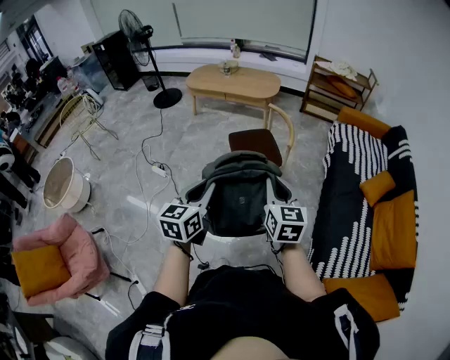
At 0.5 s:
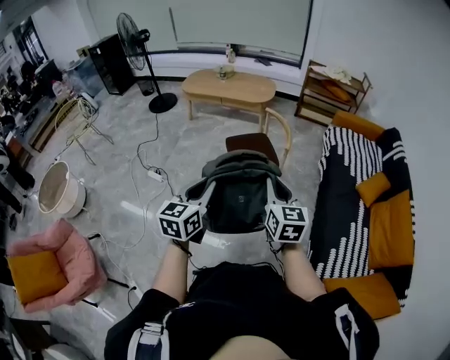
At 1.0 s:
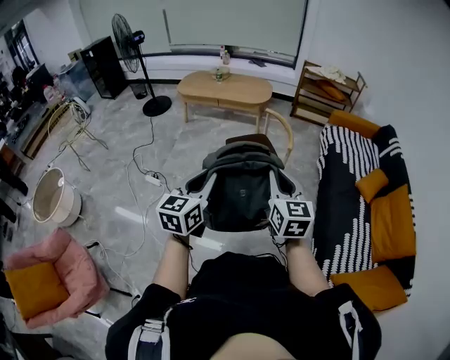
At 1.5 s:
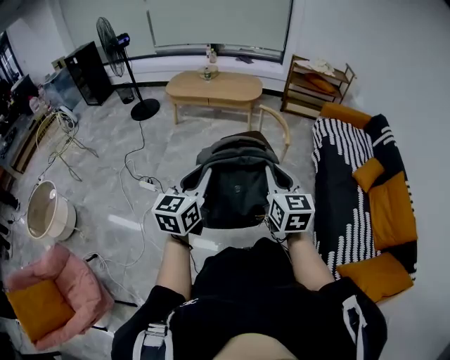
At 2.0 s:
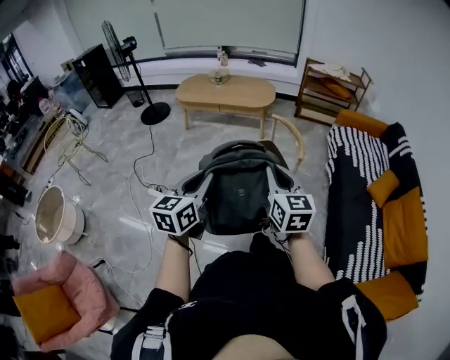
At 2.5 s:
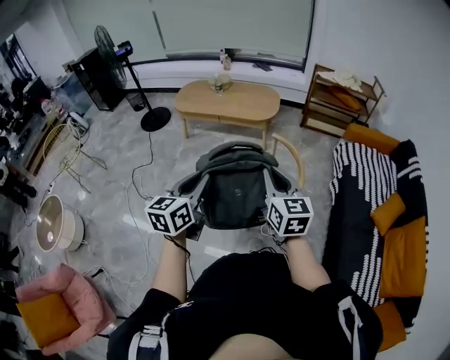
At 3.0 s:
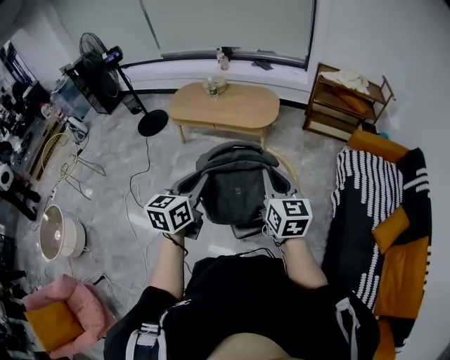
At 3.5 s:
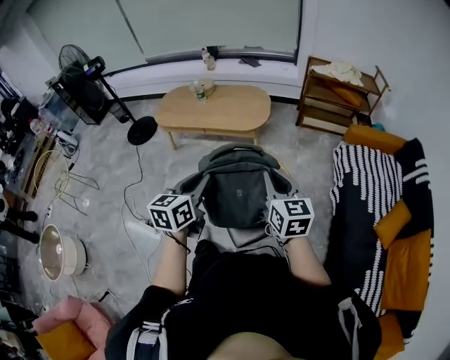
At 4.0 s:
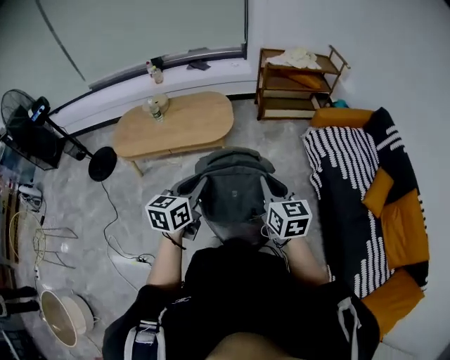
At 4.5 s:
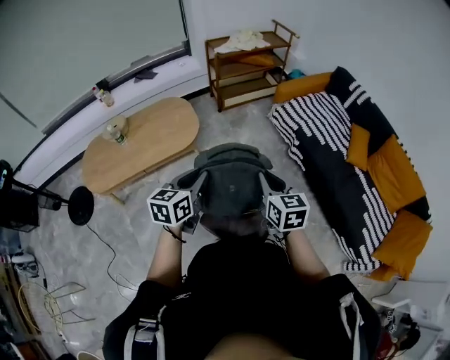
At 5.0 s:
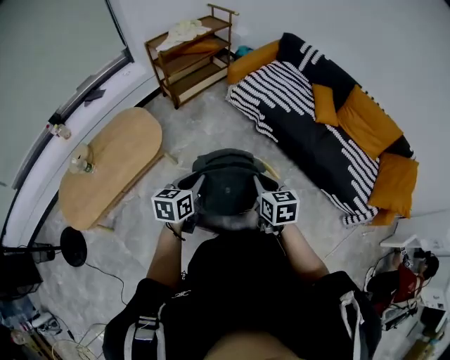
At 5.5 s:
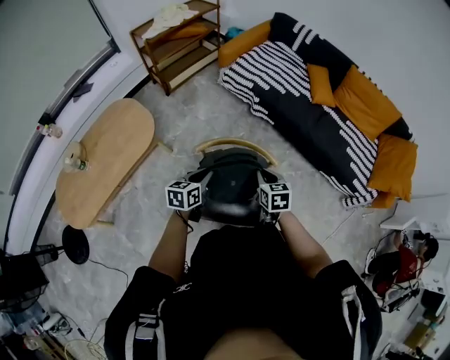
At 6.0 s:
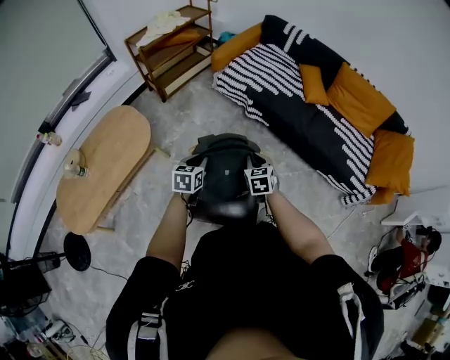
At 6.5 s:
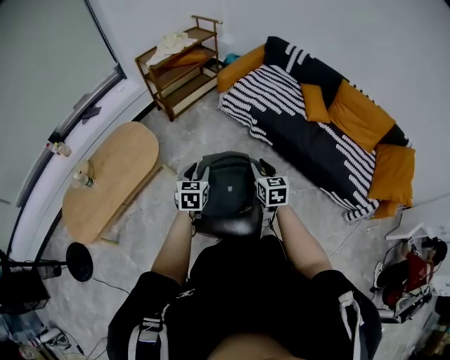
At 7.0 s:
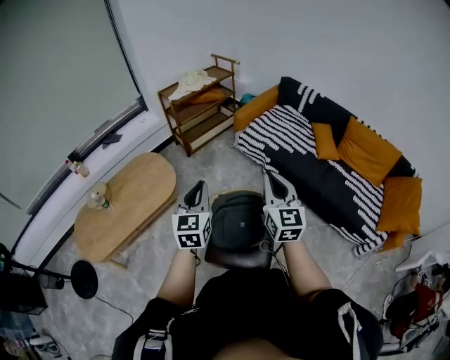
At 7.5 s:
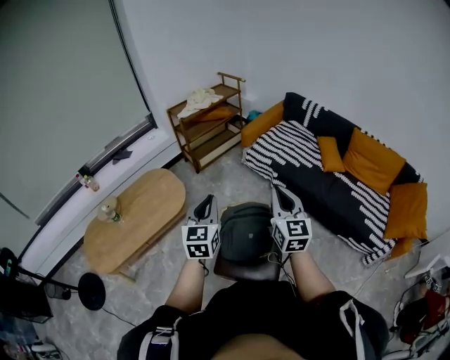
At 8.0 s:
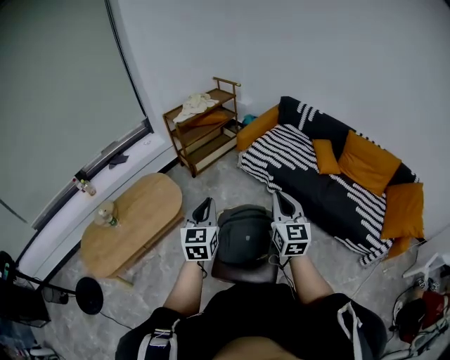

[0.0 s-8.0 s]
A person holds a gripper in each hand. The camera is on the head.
0.0 to 2.0 s: Both grippers travel together to the left and forward, some 20 cm.
2.0 to 4.0 s: Both grippers are carried forward, about 70 cm. The left gripper rotates some 20 degrees.
4.0 to 6.0 s: Both grippers travel together downward, about 25 cm. The right gripper rotates about 50 degrees. Meanwhile the left gripper swivels approximately 50 degrees.
6.0 to 8.0 s: The grippers both shift upward by some 30 cm. The right gripper points its fingers roughly 40 degrees further upward. The left gripper swivels approximately 40 degrees.

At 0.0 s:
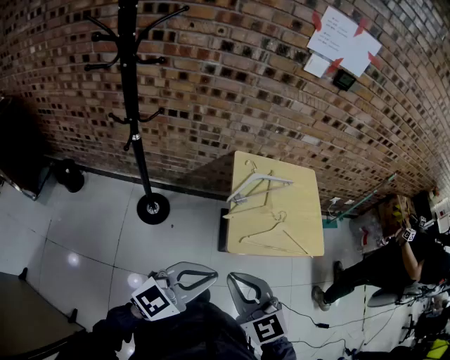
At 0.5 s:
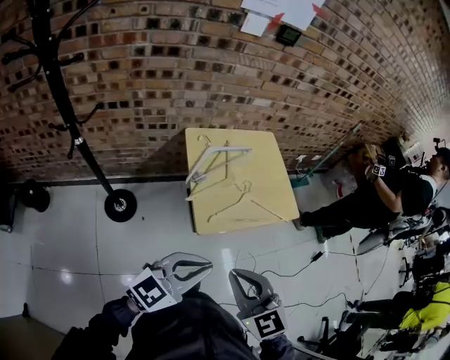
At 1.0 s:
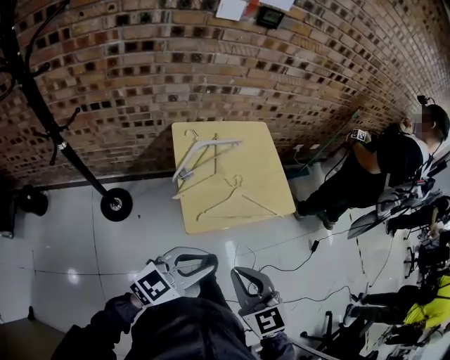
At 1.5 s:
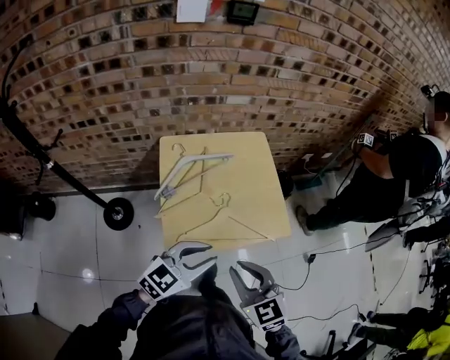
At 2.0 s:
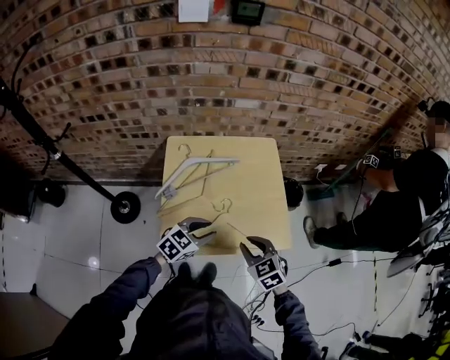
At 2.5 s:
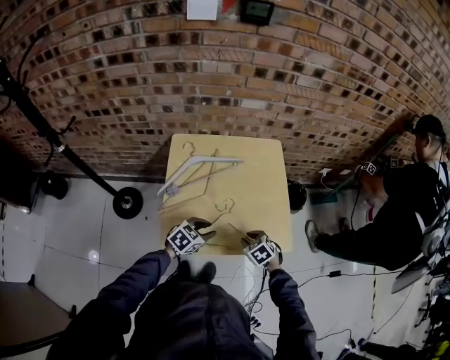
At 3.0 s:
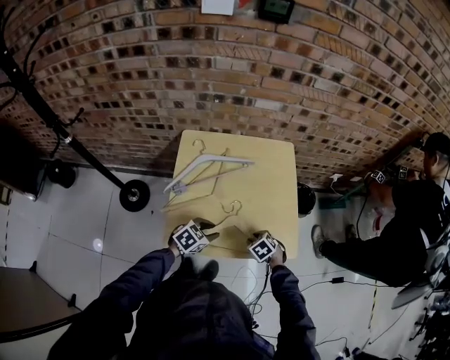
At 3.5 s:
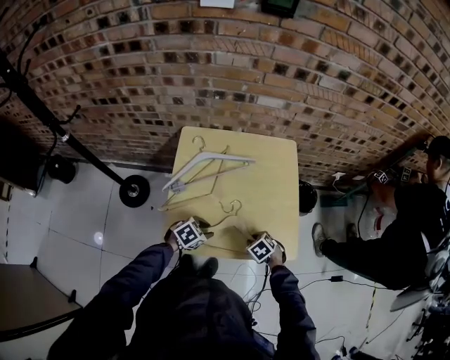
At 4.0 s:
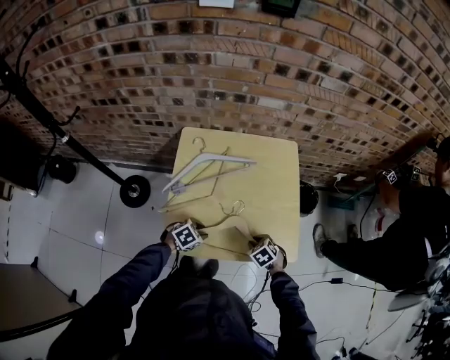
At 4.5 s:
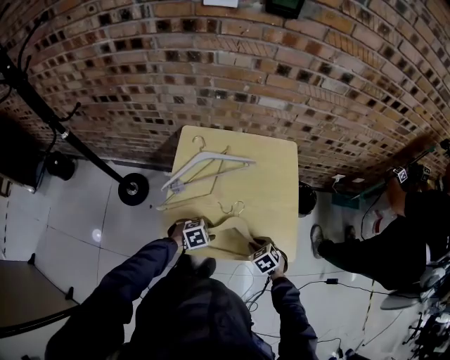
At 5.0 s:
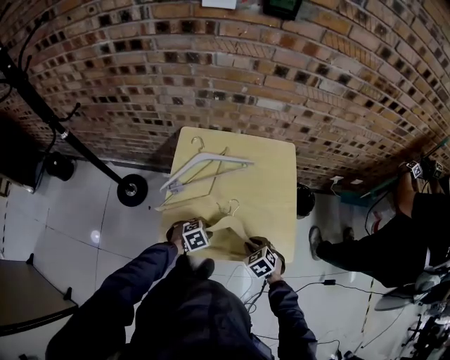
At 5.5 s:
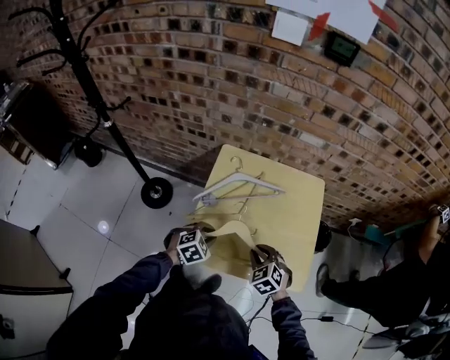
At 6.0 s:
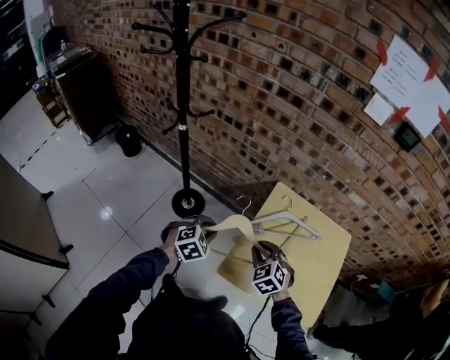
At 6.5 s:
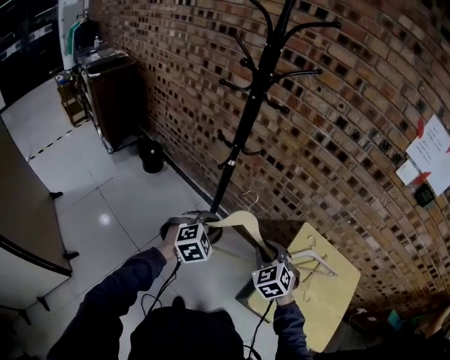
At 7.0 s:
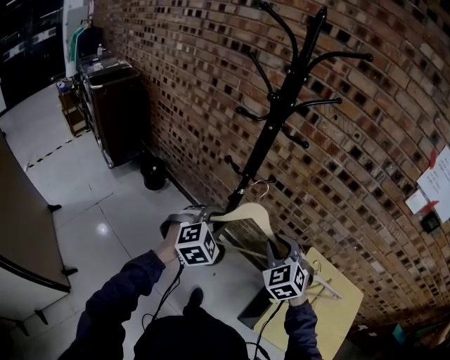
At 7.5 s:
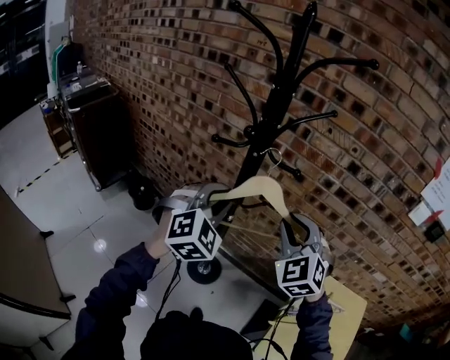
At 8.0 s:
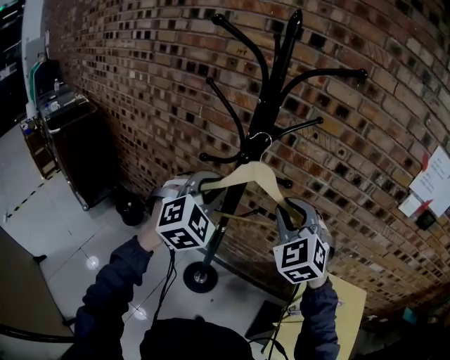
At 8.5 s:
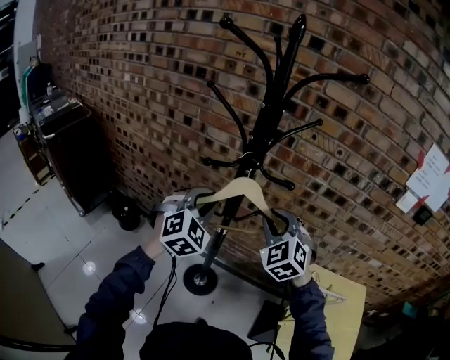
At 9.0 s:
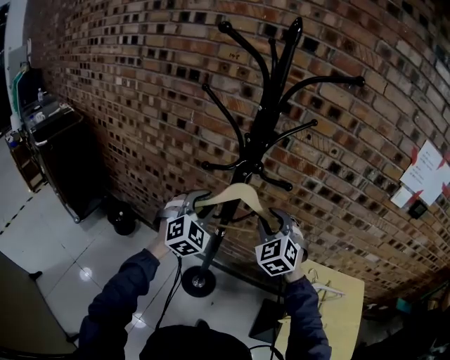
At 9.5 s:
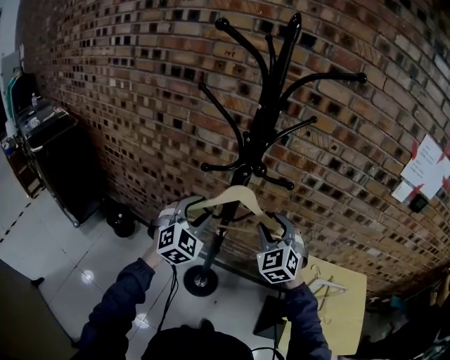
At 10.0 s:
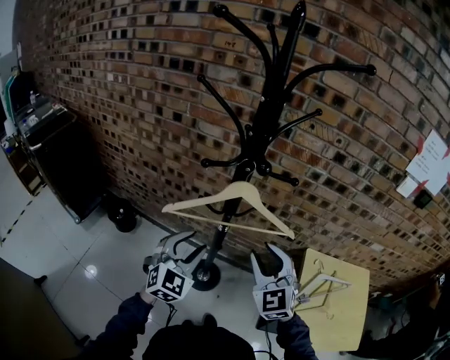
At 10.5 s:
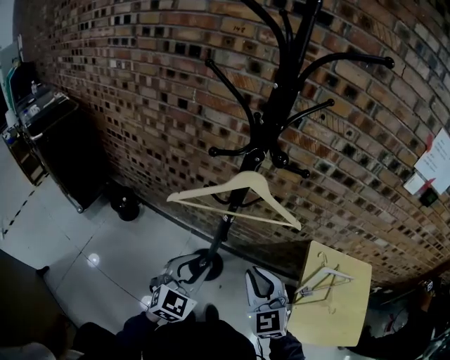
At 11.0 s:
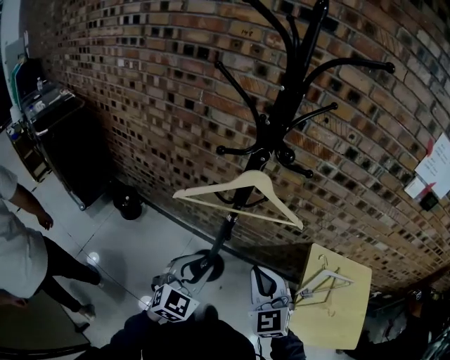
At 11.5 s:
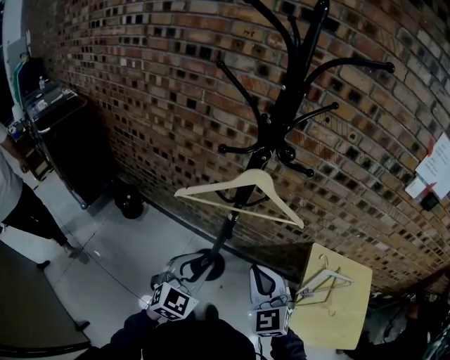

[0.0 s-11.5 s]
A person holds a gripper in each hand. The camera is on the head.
0.0 to 2.0 s: The pair of grippers is taken forward and to the right, about 40 cm. The grippers both shift downward by some 25 cm. The right gripper turns by some 30 degrees. The left gripper rotates about 30 degrees, and opens up.
2.0 to 4.0 s: Both grippers move downward, about 20 cm. The left gripper rotates some 30 degrees; the right gripper changes its angle by roughly 30 degrees.
4.0 to 6.0 s: The right gripper shifts by some 40 cm, and swivels about 40 degrees; the left gripper ends up approximately 35 cm from where it was, and turns by roughly 40 degrees.
6.0 to 7.5 s: Both grippers move upward, to the left and forward, approximately 50 cm. The right gripper changes its angle by about 30 degrees; the left gripper tilts its fingers about 30 degrees upward.
7.5 to 9.5 s: The right gripper heads downward and forward, covering about 10 cm, and opens its fingers. The left gripper shifts some 10 cm forward, to the left and downward, and opens its fingers.
9.5 to 11.5 s: The right gripper travels backward by roughly 20 cm, and closes up. Meanwhile the left gripper is displaced backward and downward by about 20 cm, swivels some 20 degrees, and closes.

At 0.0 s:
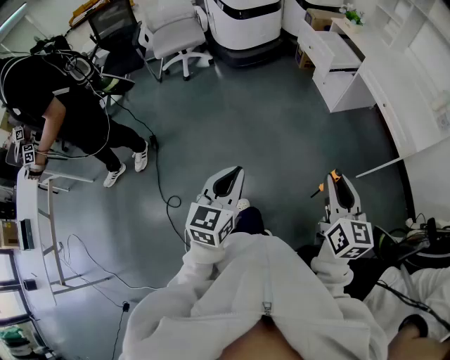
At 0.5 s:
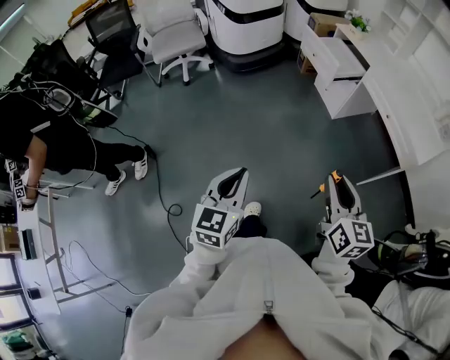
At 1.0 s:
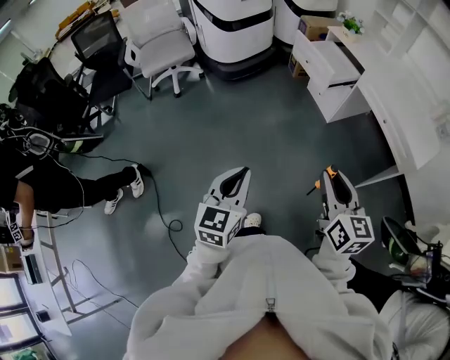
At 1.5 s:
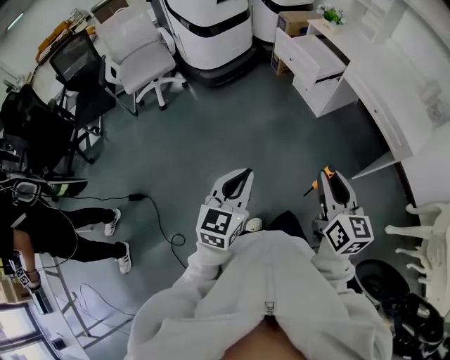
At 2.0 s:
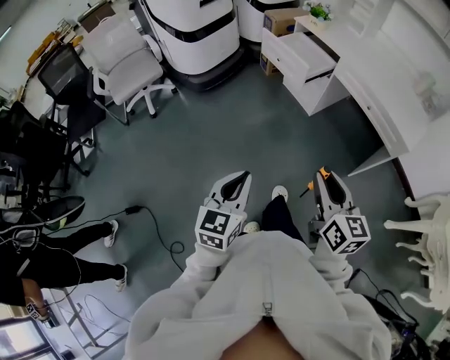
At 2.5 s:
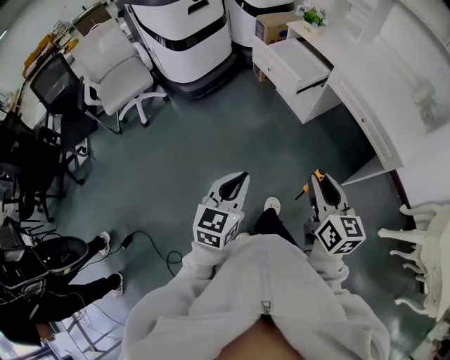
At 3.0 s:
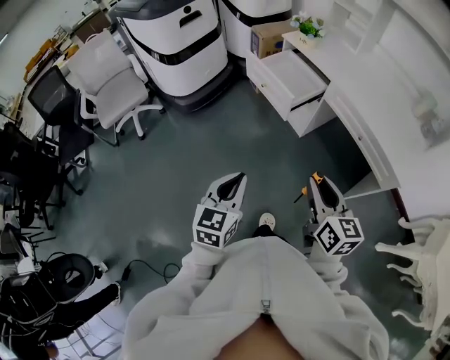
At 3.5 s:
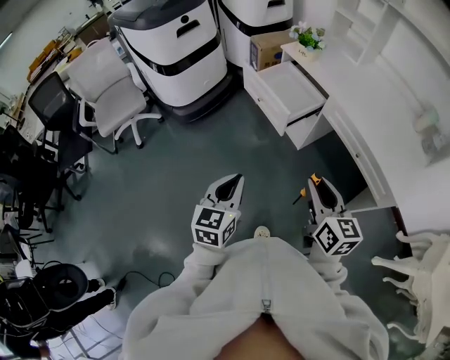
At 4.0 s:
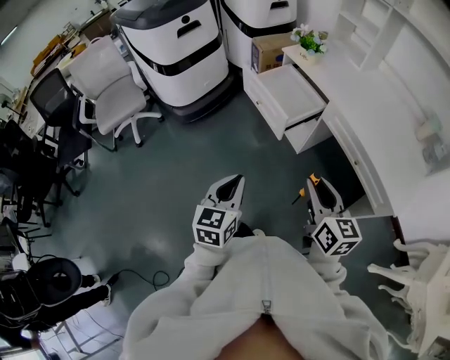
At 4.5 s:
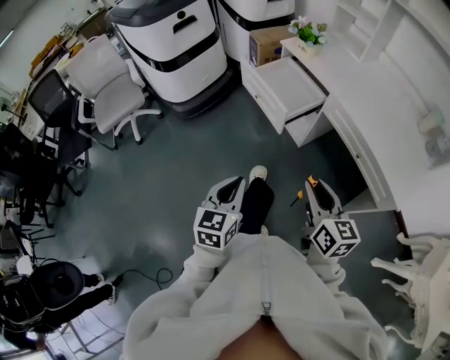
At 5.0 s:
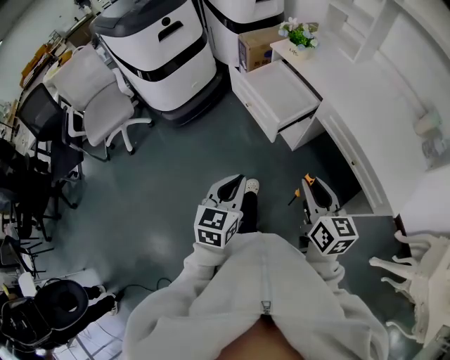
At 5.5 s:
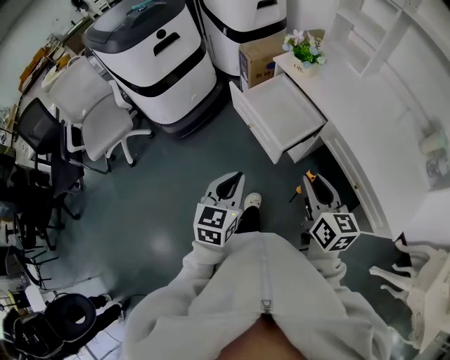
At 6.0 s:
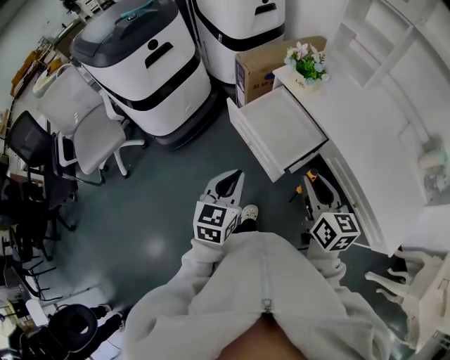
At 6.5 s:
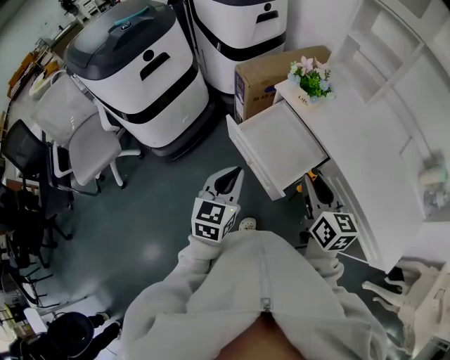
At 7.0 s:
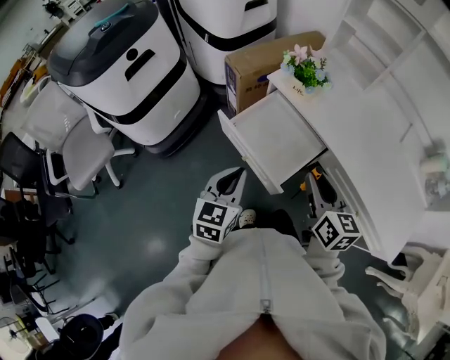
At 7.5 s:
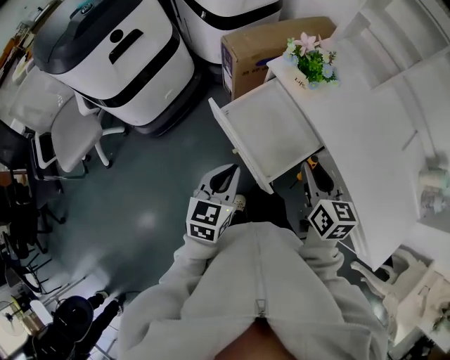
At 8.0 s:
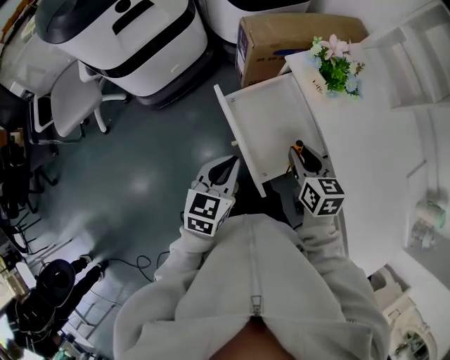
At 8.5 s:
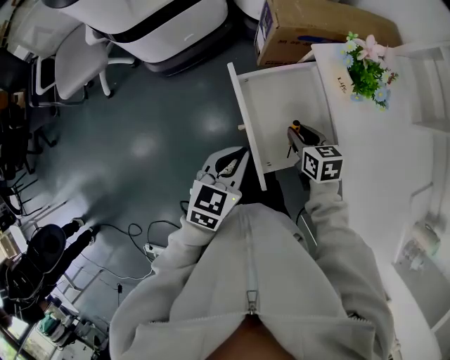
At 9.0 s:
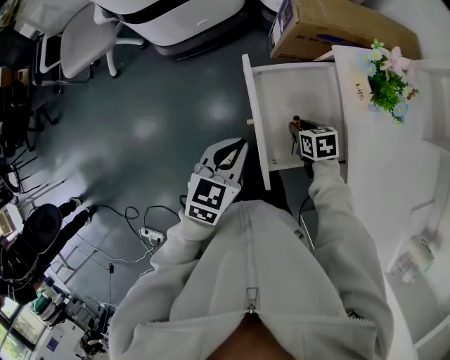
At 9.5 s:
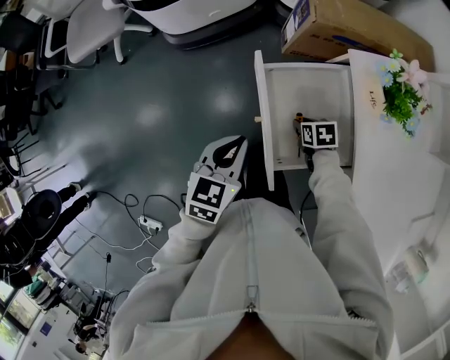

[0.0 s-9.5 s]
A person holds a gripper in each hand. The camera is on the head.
0.0 to 2.0 s: Both grippers move forward, approximately 20 cm.
2.0 to 4.0 s: Both grippers travel together forward, approximately 25 cm.
4.0 to 5.5 s: Both grippers travel together forward, about 15 cm.
5.5 to 7.5 s: Both grippers move forward, roughly 20 cm.
7.5 to 9.5 s: The left gripper heads downward, covering about 5 cm, and swivels approximately 20 degrees. Meanwhile the right gripper travels downward by about 30 cm, and points its fingers roughly 40 degrees further downward.
